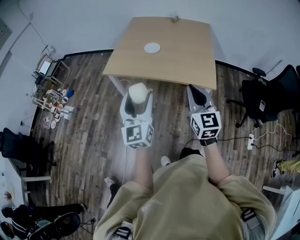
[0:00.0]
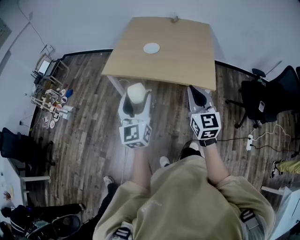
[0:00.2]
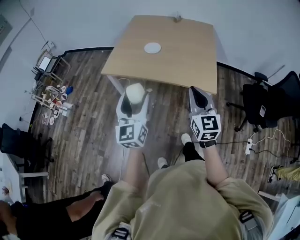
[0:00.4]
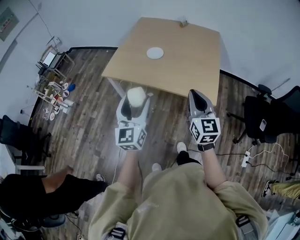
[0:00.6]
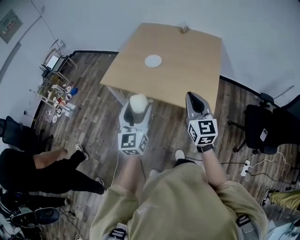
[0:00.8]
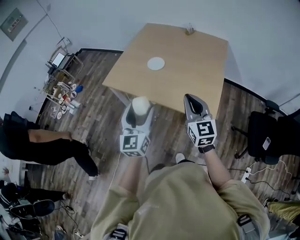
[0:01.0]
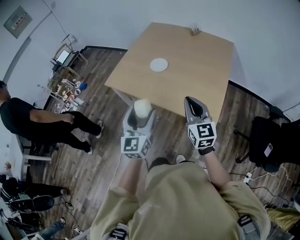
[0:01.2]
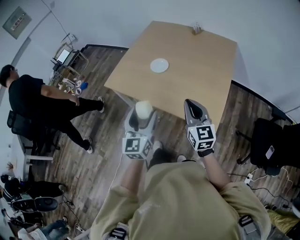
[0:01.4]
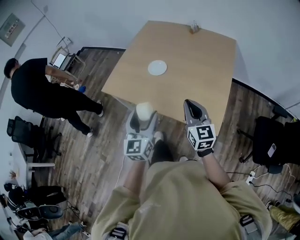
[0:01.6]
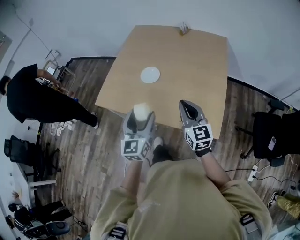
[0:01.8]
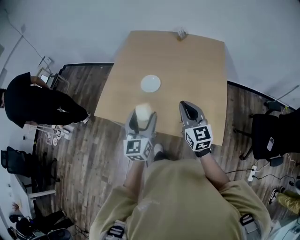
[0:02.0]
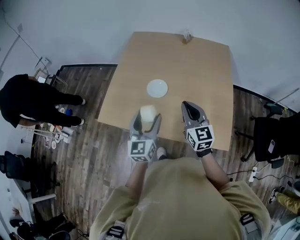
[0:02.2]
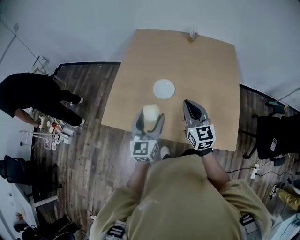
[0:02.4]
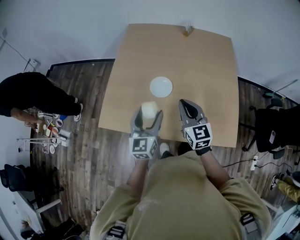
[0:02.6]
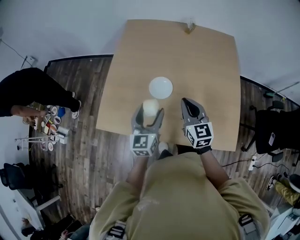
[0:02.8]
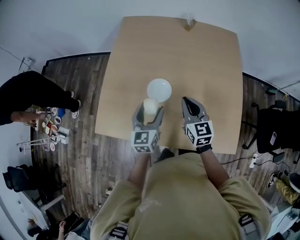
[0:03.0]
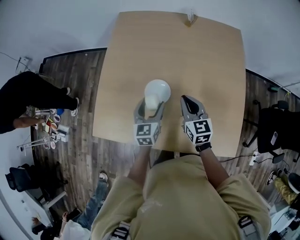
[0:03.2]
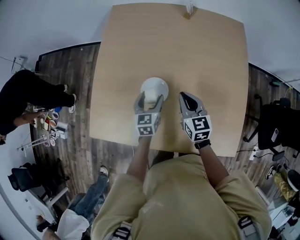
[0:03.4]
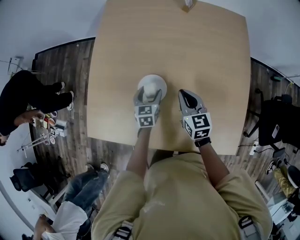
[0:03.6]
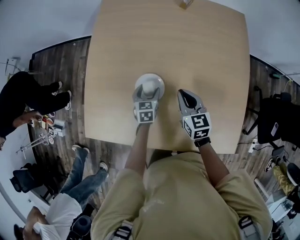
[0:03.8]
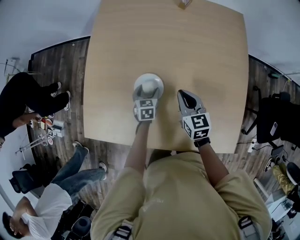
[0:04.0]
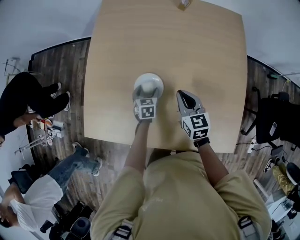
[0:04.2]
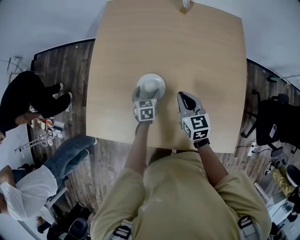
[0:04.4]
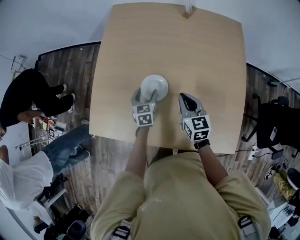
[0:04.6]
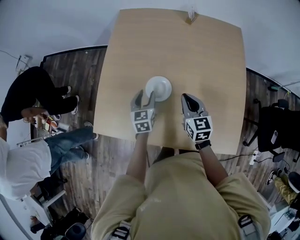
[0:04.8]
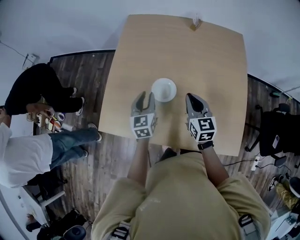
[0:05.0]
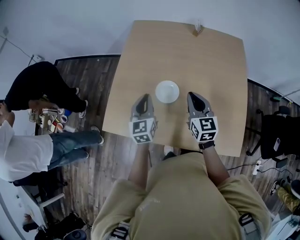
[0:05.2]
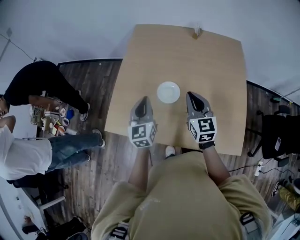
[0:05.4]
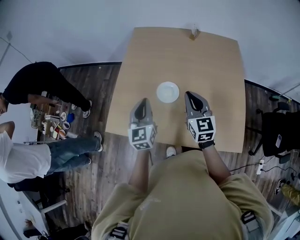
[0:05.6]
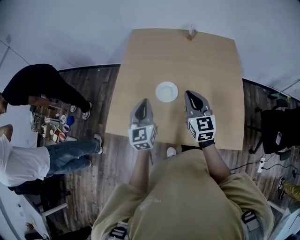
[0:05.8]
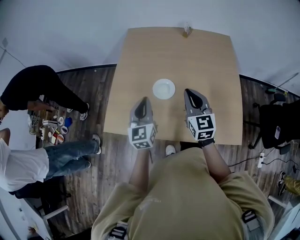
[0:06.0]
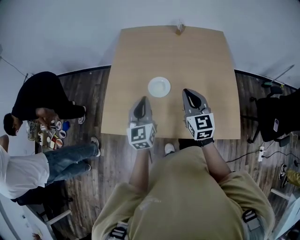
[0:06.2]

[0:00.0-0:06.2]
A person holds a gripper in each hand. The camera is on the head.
0:00.0 to 0:01.6: The grippers both shift forward and to the right by about 30 cm.
0:01.6 to 0:03.2: The left gripper goes roughly 50 cm forward and downward, and changes its angle by some 30 degrees, while the right gripper travels forward by roughly 35 cm.
0:03.2 to 0:04.6: The left gripper is displaced downward and forward by some 10 cm.
0:04.6 to 0:06.2: The right gripper travels upward and backward by roughly 20 cm, and swivels approximately 20 degrees. Meanwhile the left gripper shifts approximately 30 cm upward and backward, angles its fingers upward, by roughly 30 degrees, and closes its fingers.

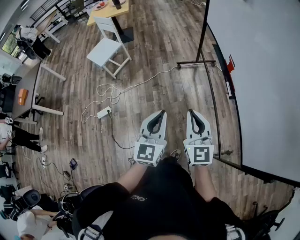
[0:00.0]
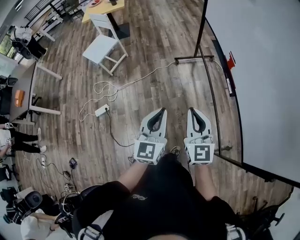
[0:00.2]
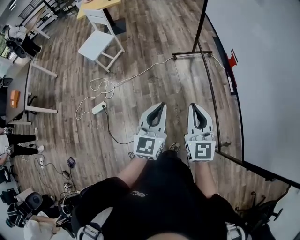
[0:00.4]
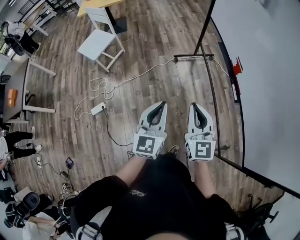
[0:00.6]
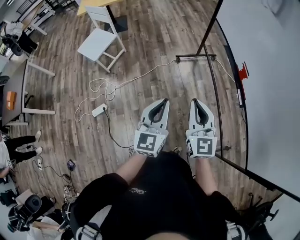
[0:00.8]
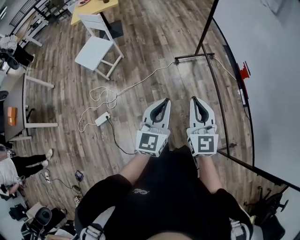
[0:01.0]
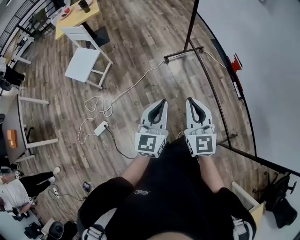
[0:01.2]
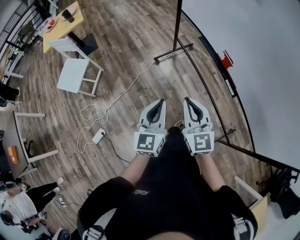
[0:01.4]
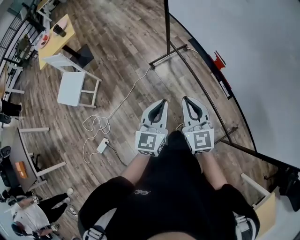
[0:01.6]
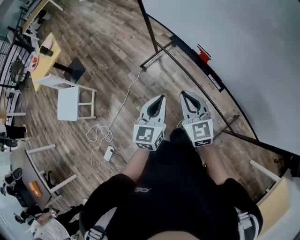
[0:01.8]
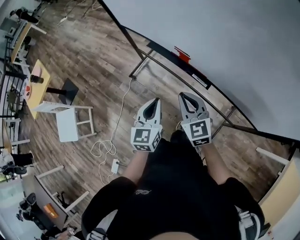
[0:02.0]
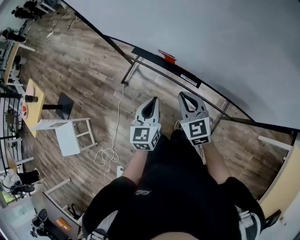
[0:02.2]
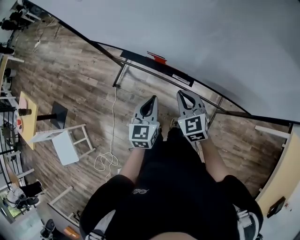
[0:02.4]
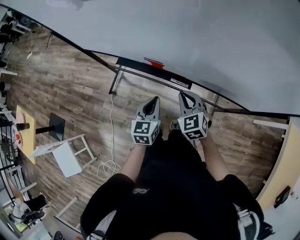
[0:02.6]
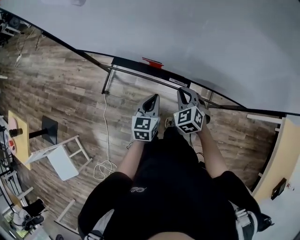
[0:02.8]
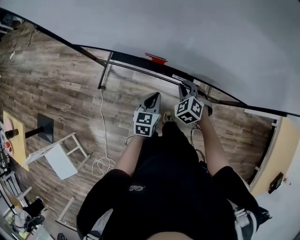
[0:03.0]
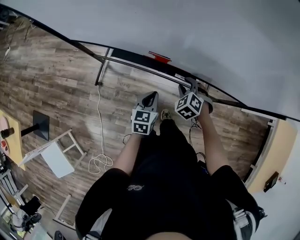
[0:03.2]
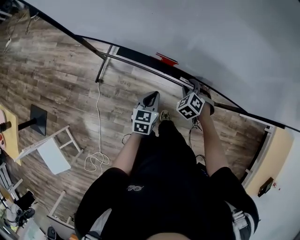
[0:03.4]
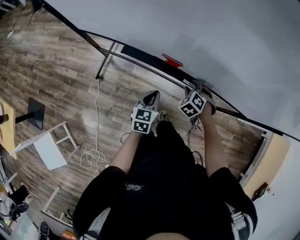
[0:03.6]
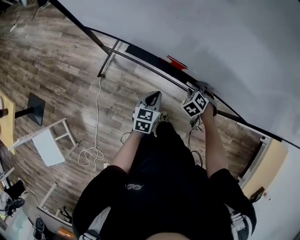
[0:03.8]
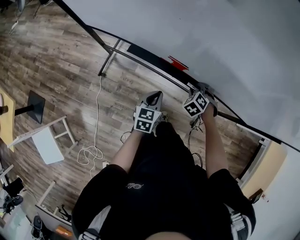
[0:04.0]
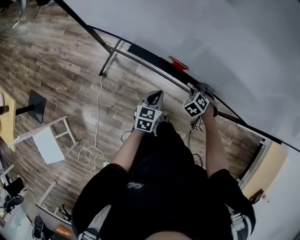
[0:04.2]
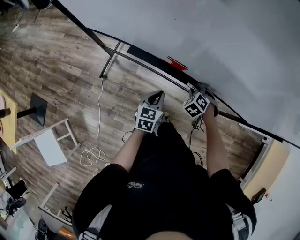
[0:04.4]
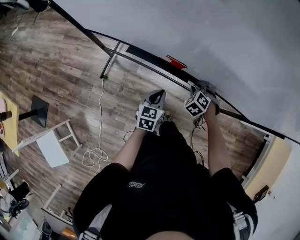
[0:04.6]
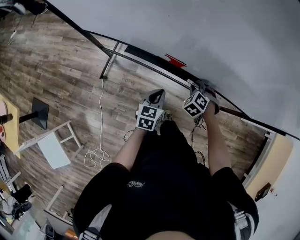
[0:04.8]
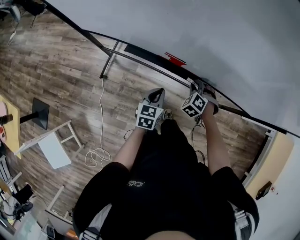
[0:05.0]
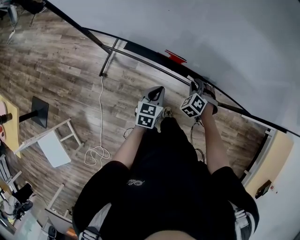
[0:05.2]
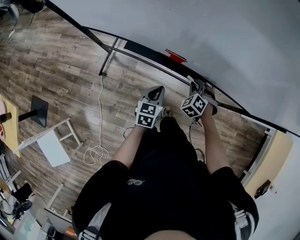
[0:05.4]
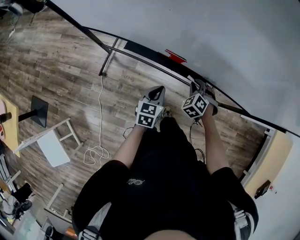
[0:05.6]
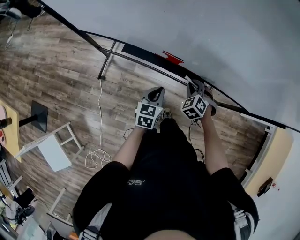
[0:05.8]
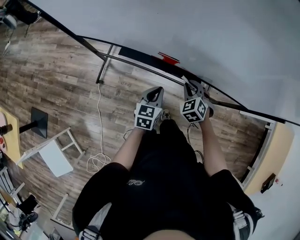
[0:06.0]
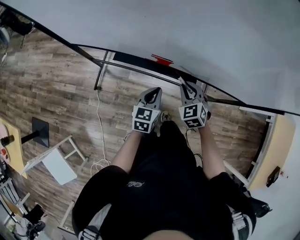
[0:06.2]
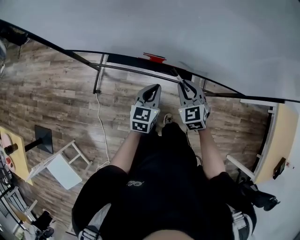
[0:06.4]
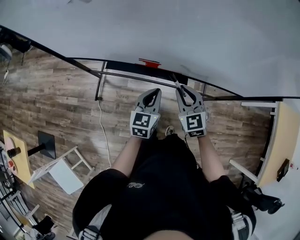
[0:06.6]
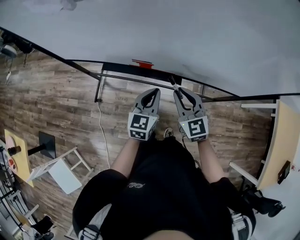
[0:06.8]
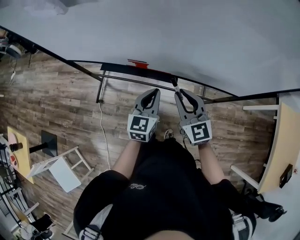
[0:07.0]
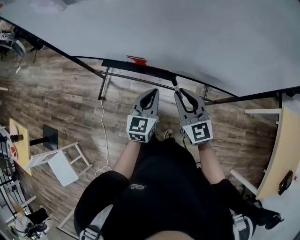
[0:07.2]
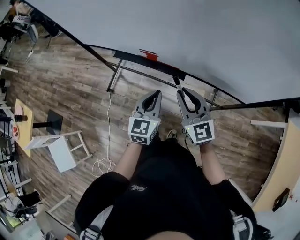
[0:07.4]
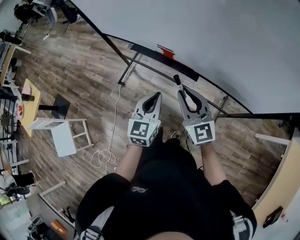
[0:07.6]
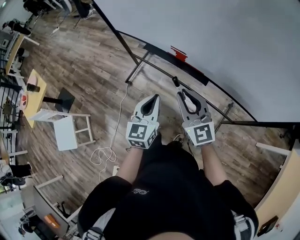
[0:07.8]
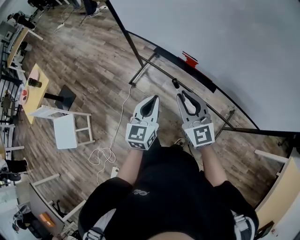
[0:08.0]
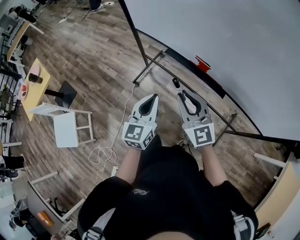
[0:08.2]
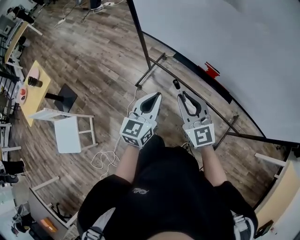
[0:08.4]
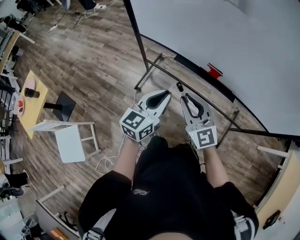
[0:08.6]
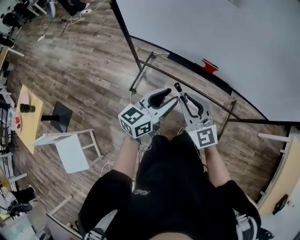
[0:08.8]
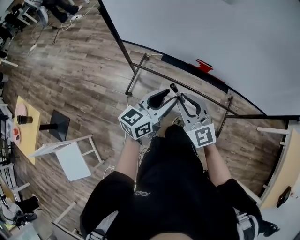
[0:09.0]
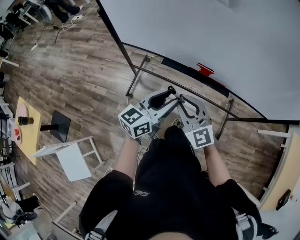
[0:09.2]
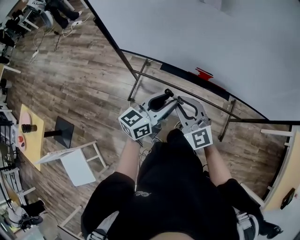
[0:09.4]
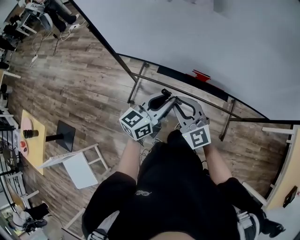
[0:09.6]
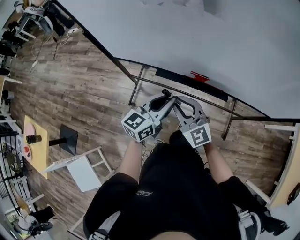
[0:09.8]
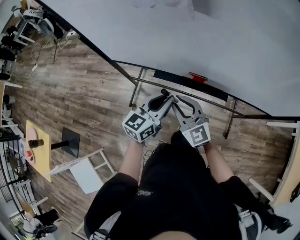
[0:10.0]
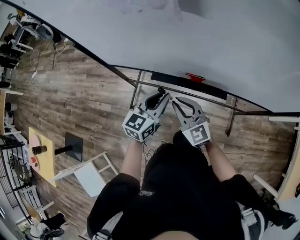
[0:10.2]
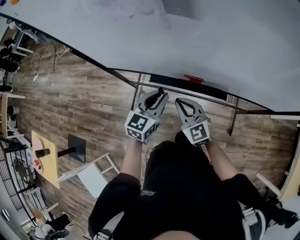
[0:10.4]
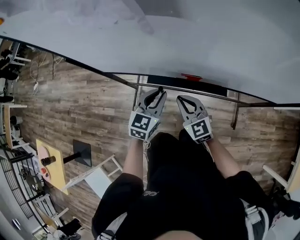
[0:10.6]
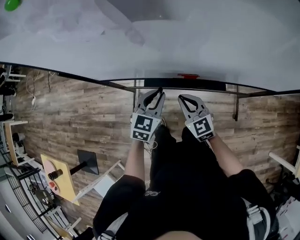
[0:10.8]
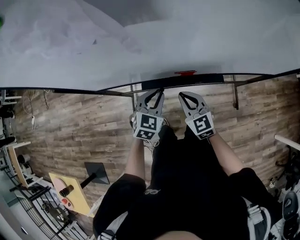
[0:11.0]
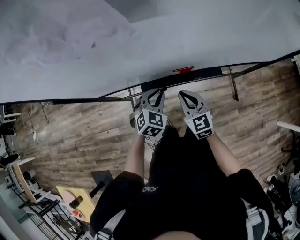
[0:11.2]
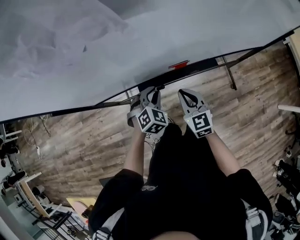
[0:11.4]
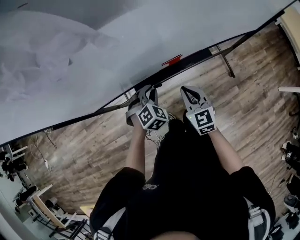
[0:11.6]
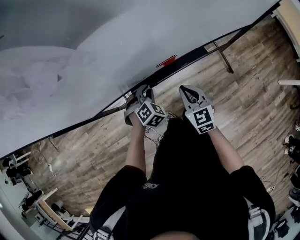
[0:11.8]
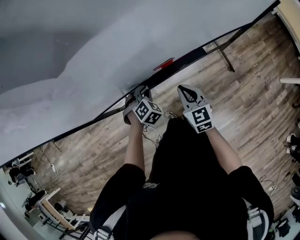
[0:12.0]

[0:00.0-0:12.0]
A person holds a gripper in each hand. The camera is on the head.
0:00.0 to 0:01.6: Both grippers move forward, approximately 25 cm. The left gripper swivels about 30 degrees.
0:01.6 to 0:03.0: The right gripper shifts by roughly 35 cm, and angles its fingers downward, by some 40 degrees. The left gripper shifts by roughly 30 cm, and rotates approximately 50 degrees.
0:03.0 to 0:04.4: The left gripper goes about 5 cm to the left. Meanwhile the right gripper goes roughly 10 cm downward.
0:04.4 to 0:06.0: The right gripper travels upward by some 5 cm, and rotates some 20 degrees.
0:06.0 to 0:07.6: Both grippers move upward, roughly 20 cm. The left gripper swivels roughly 20 degrees, while the right gripper tilts its fingers roughly 50 degrees upward.
0:07.6 to 0:09.0: The right gripper heads to the left, covering some 30 cm. Meanwhile the left gripper is displaced to the left and forward by approximately 25 cm, changes its angle by some 40 degrees, and opens up.
0:09.0 to 0:10.4: The right gripper heads forward, downward and to the right, covering roughly 15 cm; the left gripper moves forward, some 15 cm, and changes its angle by approximately 20 degrees.
0:10.4 to 0:12.0: The left gripper is displaced downward and forward by roughly 20 cm, and rolls clockwise, seen from behind, by about 60 degrees. The right gripper shifts about 10 cm downward and to the right, and turns by approximately 50 degrees.

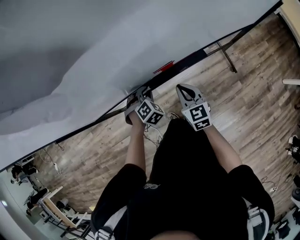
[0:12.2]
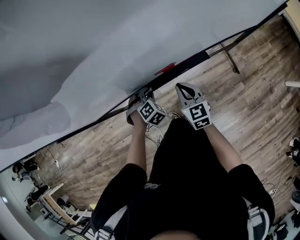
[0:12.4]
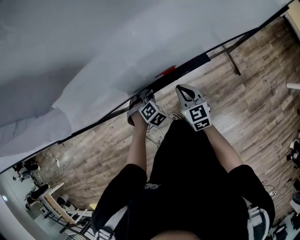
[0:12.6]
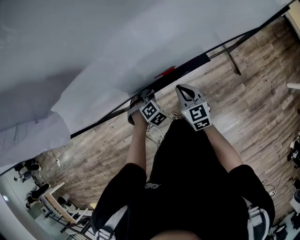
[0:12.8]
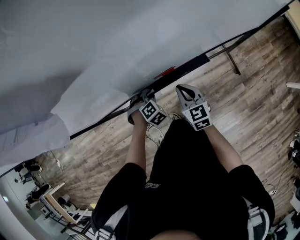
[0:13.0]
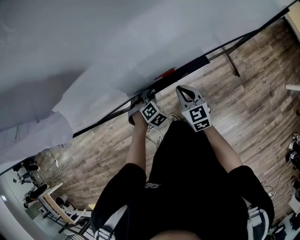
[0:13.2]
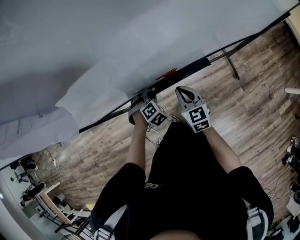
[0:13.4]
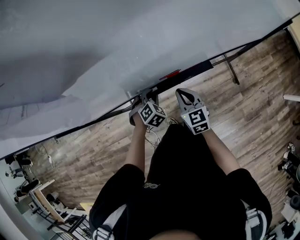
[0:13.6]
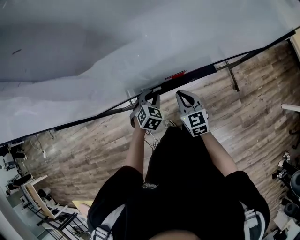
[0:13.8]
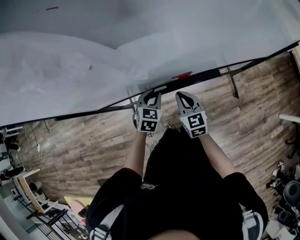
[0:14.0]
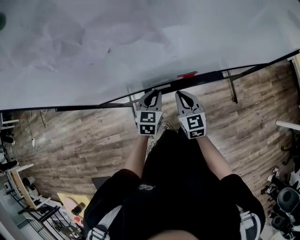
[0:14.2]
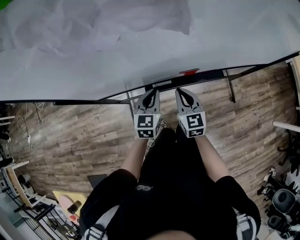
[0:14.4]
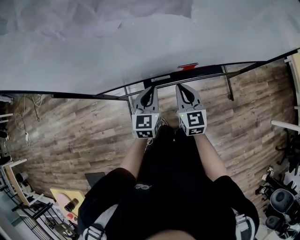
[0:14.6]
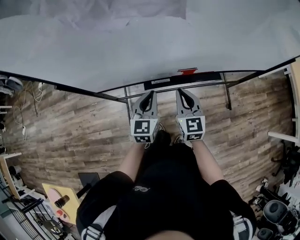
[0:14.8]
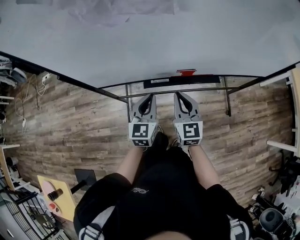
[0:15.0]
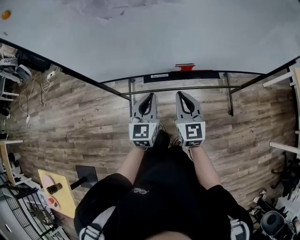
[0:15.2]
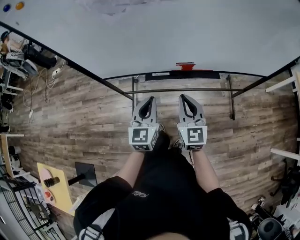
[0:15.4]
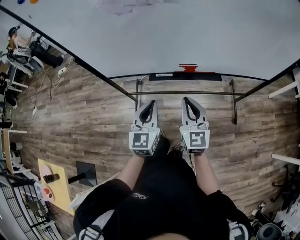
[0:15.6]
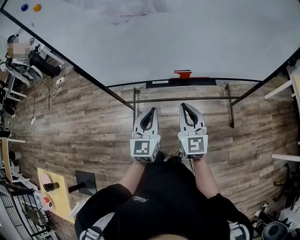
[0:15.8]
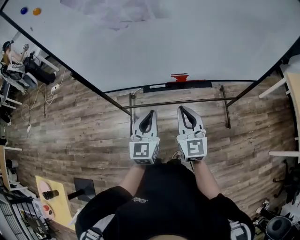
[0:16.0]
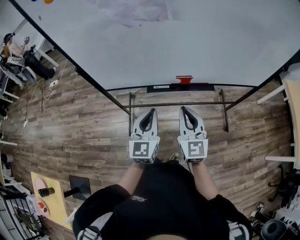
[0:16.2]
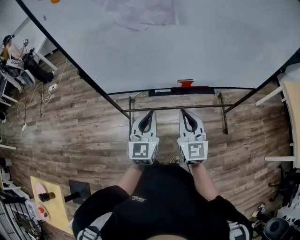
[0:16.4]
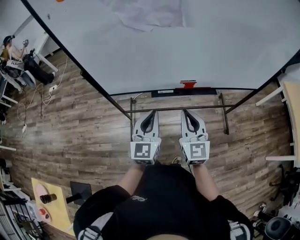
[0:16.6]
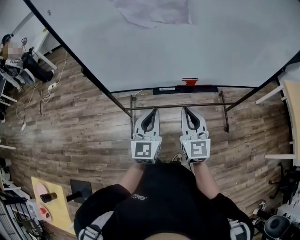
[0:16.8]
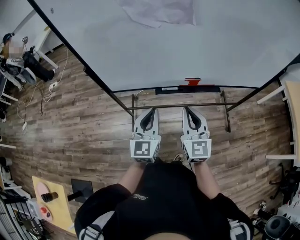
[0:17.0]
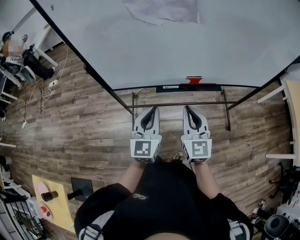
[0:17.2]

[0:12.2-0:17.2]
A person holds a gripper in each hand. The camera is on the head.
0:12.2 to 0:13.8: The left gripper turns by about 20 degrees.
0:13.8 to 0:15.6: Both grippers travel together backward and upward, approximately 25 cm. The right gripper turns by some 20 degrees. Meanwhile the left gripper angles its fingers upward, by about 40 degrees.
0:15.6 to 0:17.2: Both grippers travel together to the left and upward, roughly 10 cm.
